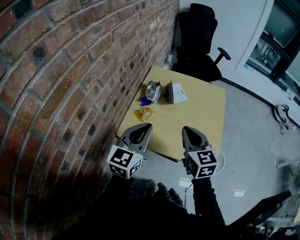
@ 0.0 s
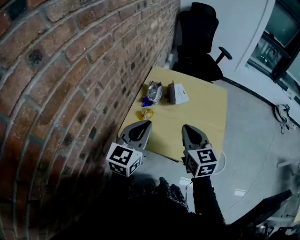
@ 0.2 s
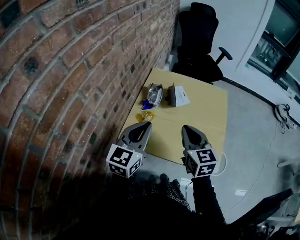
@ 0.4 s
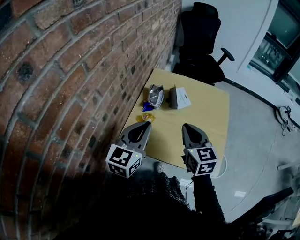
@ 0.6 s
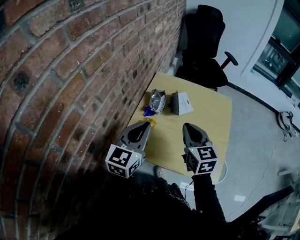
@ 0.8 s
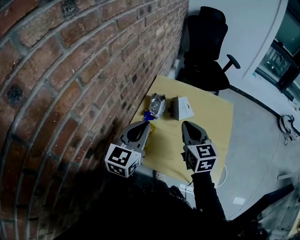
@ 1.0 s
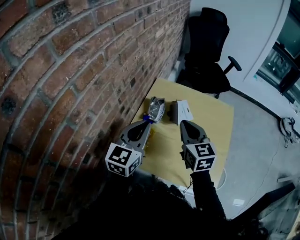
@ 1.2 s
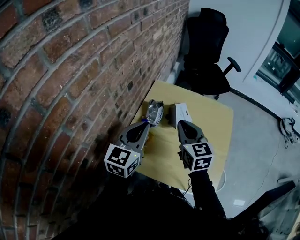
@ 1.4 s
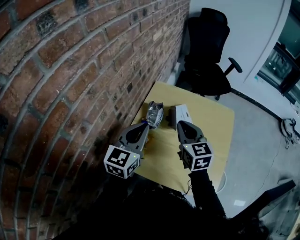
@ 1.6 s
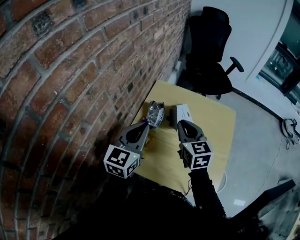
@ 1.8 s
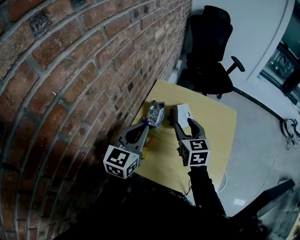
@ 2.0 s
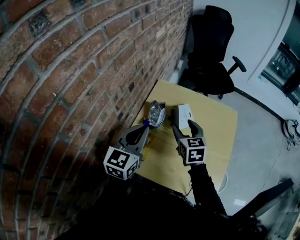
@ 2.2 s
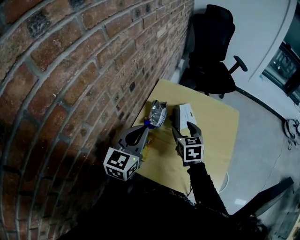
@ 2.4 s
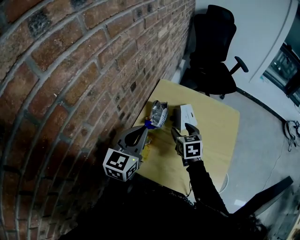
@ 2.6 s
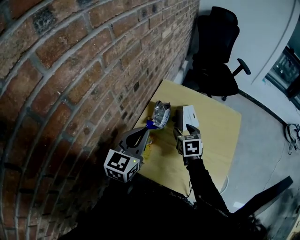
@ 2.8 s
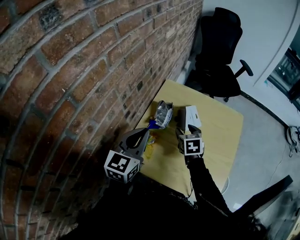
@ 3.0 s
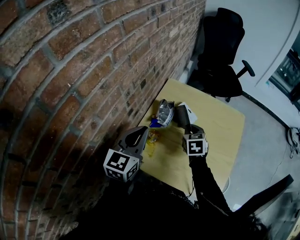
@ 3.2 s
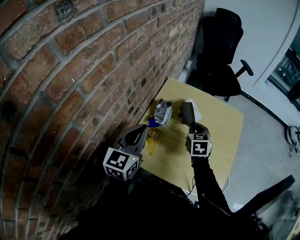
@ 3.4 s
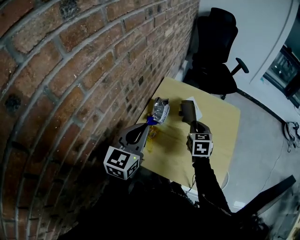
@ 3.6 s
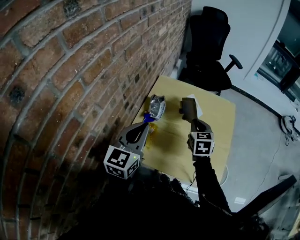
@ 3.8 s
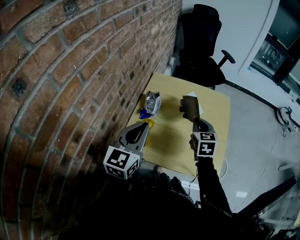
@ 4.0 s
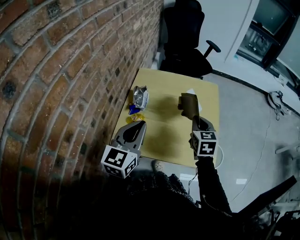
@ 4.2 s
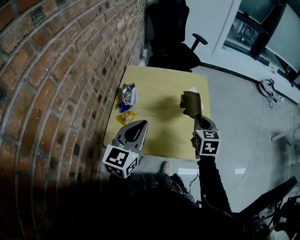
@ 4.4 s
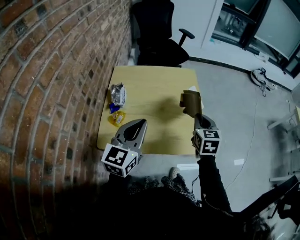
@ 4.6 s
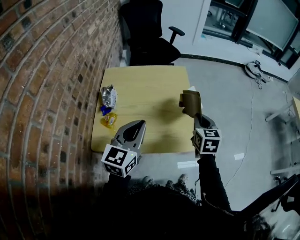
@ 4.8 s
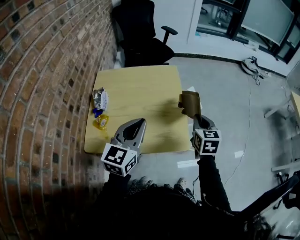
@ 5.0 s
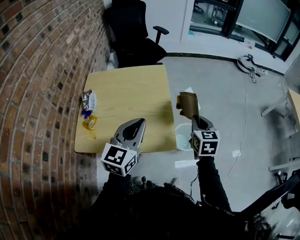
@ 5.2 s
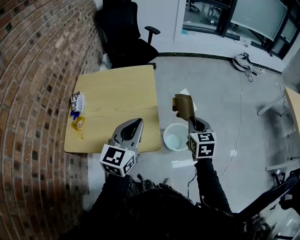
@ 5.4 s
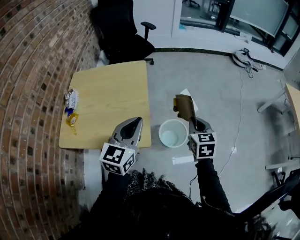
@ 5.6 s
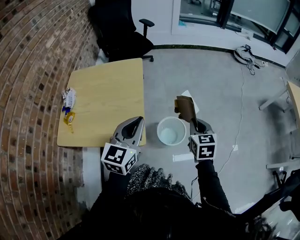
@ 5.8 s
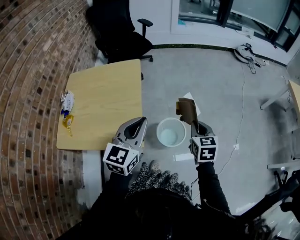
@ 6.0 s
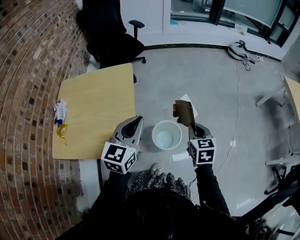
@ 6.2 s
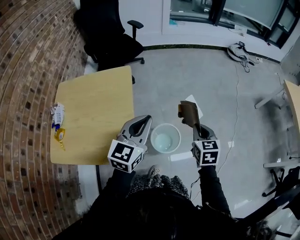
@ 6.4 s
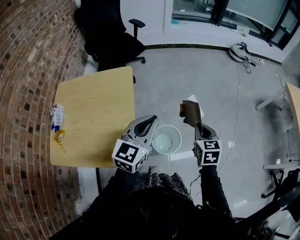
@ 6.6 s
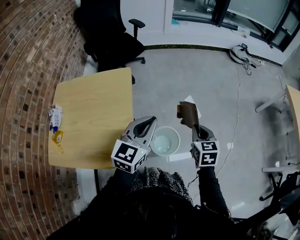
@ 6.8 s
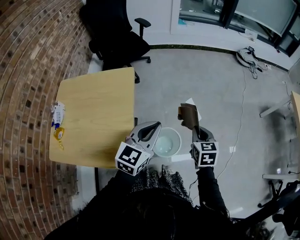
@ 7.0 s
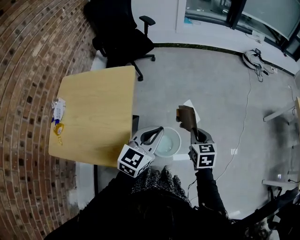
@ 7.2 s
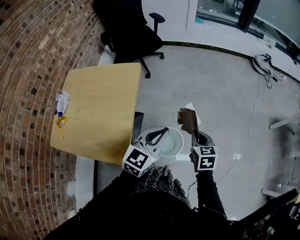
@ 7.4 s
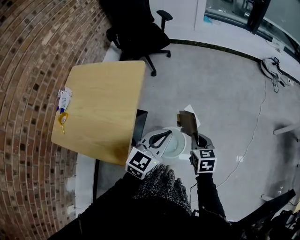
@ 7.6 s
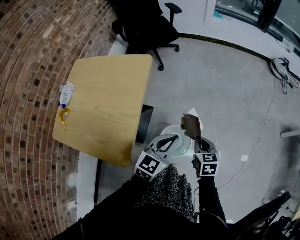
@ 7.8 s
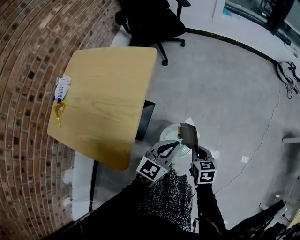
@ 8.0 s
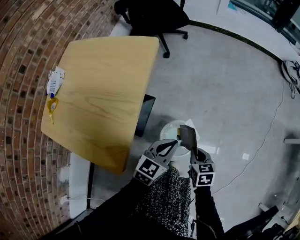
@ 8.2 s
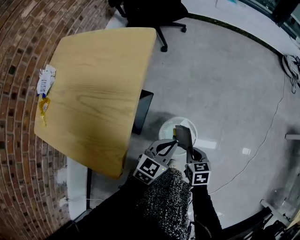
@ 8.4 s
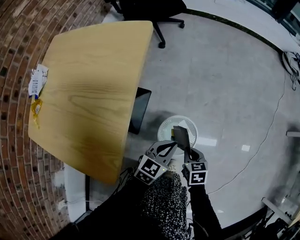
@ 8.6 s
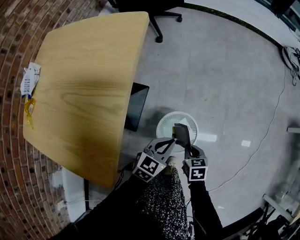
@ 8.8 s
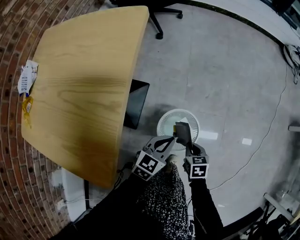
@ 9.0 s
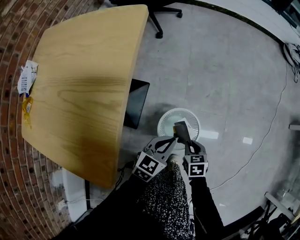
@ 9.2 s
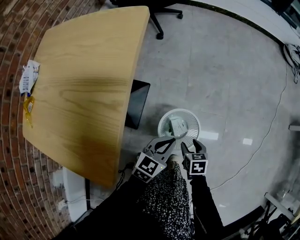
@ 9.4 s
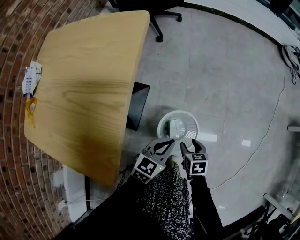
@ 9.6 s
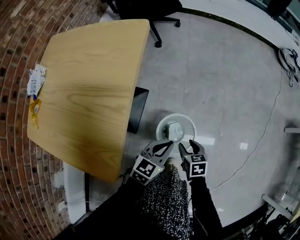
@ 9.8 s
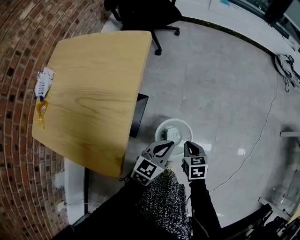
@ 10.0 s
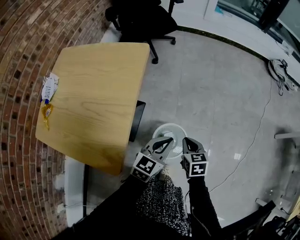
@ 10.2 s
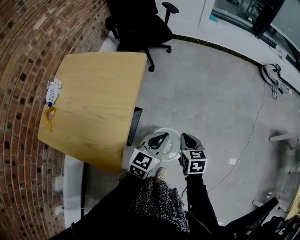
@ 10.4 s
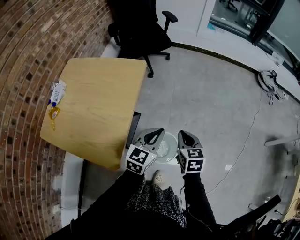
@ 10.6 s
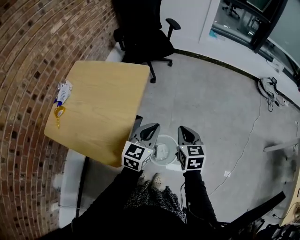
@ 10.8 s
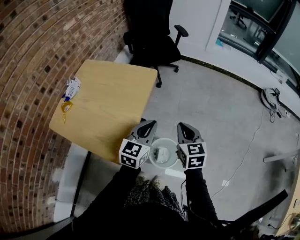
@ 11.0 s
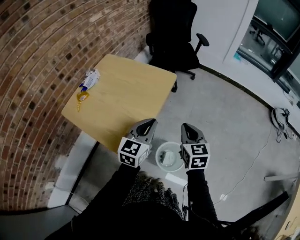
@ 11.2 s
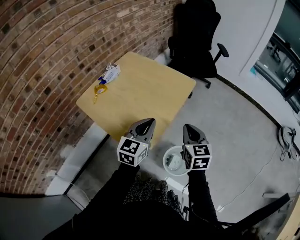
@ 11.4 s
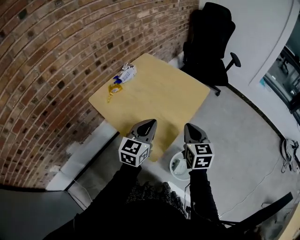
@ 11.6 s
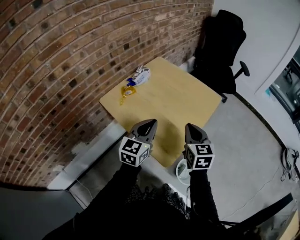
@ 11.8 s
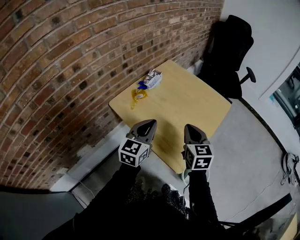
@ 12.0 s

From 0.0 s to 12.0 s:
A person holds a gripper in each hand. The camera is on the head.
From 0.0 s to 1.6 s: Both grippers move forward, approximately 15 cm.
From 1.6 s to 3.0 s: The right gripper is displaced downward by some 15 cm, swivels some 30 degrees, and opens up.
From 3.0 s to 4.4 s: The left gripper moves to the right and backward, roughly 15 cm; the right gripper is displaced to the right, backward and upward by roughly 25 cm, rotates about 30 degrees, and closes its fingers.
From 4.4 s to 6.0 s: Both grippers are carried to the right, approximately 40 cm.
From 6.0 s to 7.6 s: The left gripper moves forward, to the right and downward, roughly 20 cm, while the right gripper moves forward and downward, some 15 cm.
From 7.6 s to 9.0 s: Both grippers travel together downward, about 35 cm. The right gripper changes its angle by approximately 20 degrees.
From 9.0 s to 10.4 s: The two grippers go about 25 cm upward. The right gripper opens, then closes again.
From 10.4 s to 12.0 s: The left gripper changes place by roughly 50 cm, and turns by roughly 40 degrees. Meanwhile the right gripper ends up approximately 40 cm from where it was, and rotates approximately 40 degrees.

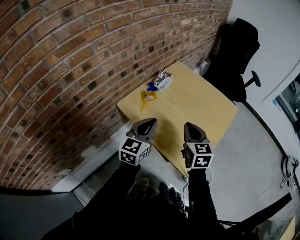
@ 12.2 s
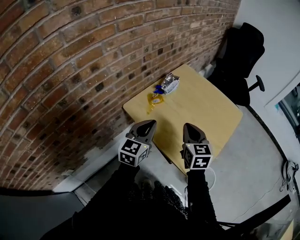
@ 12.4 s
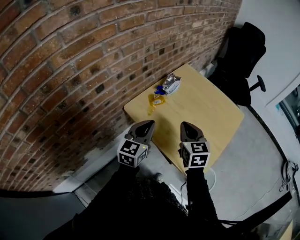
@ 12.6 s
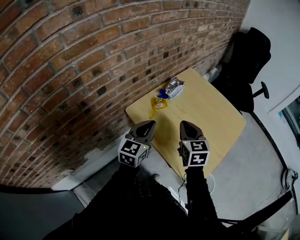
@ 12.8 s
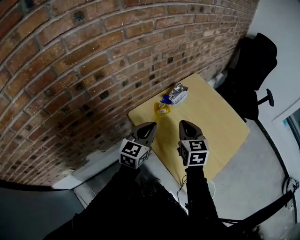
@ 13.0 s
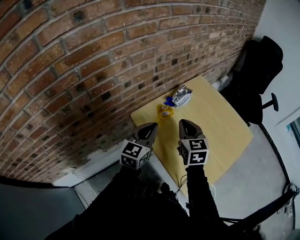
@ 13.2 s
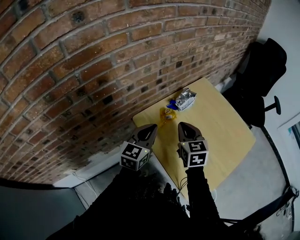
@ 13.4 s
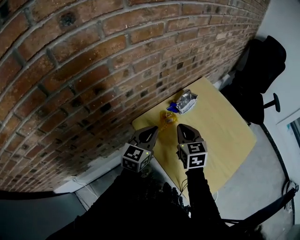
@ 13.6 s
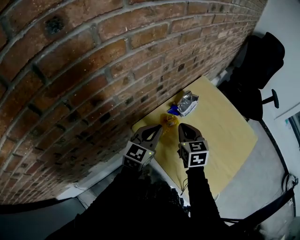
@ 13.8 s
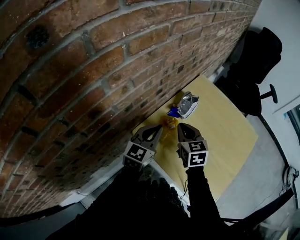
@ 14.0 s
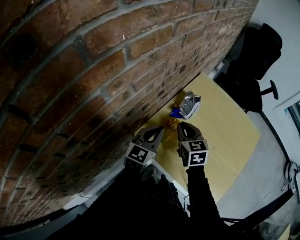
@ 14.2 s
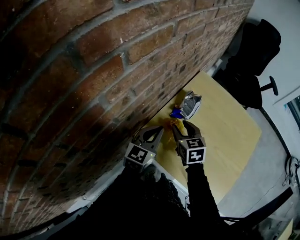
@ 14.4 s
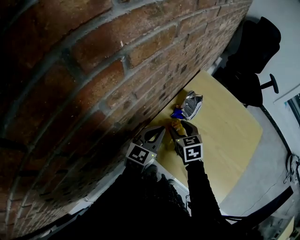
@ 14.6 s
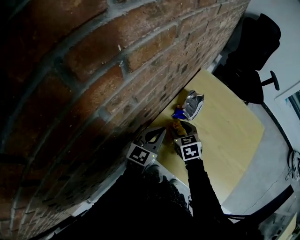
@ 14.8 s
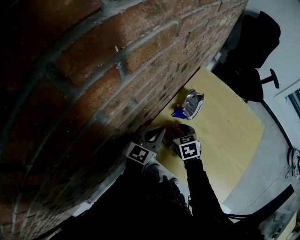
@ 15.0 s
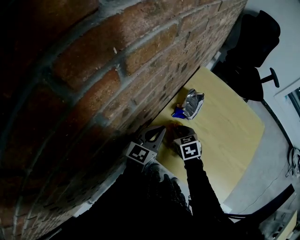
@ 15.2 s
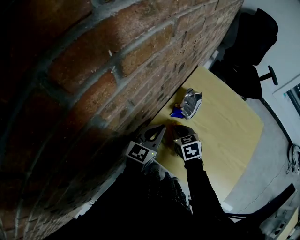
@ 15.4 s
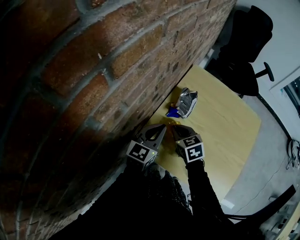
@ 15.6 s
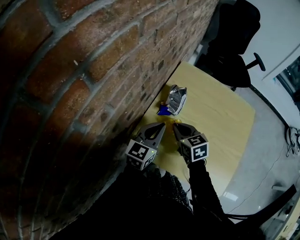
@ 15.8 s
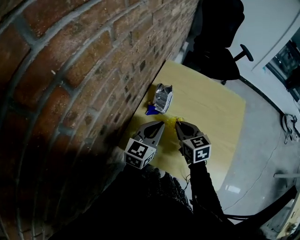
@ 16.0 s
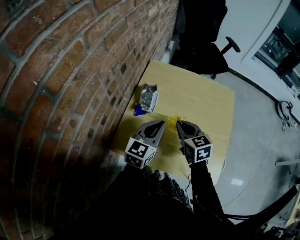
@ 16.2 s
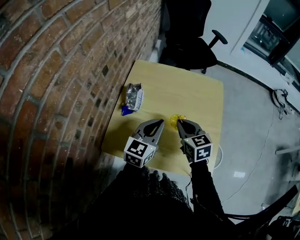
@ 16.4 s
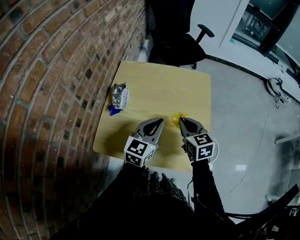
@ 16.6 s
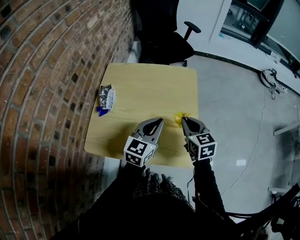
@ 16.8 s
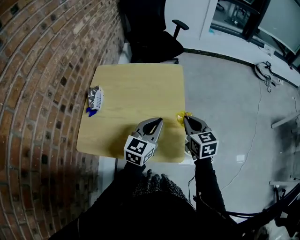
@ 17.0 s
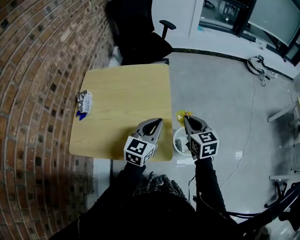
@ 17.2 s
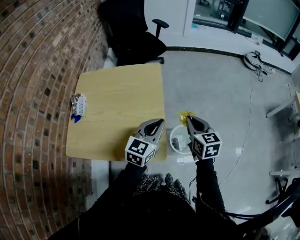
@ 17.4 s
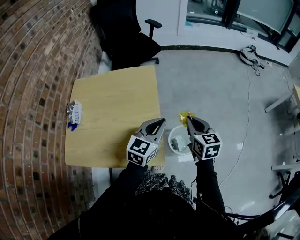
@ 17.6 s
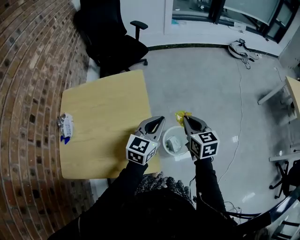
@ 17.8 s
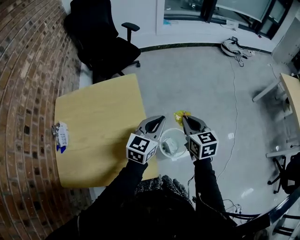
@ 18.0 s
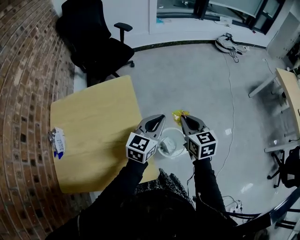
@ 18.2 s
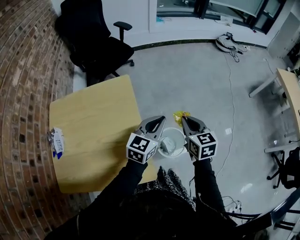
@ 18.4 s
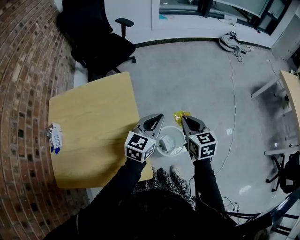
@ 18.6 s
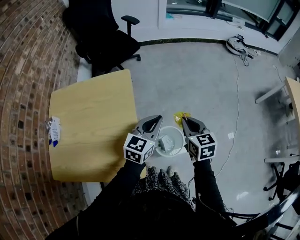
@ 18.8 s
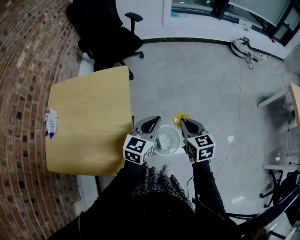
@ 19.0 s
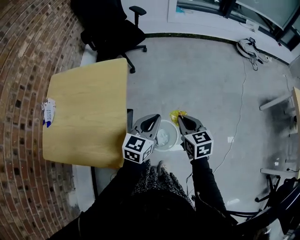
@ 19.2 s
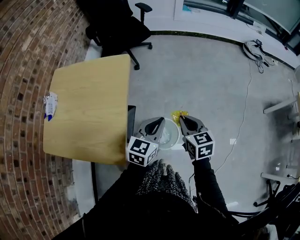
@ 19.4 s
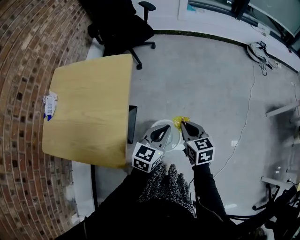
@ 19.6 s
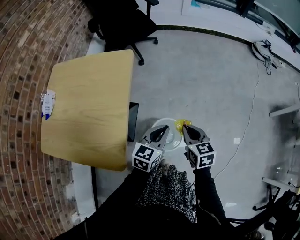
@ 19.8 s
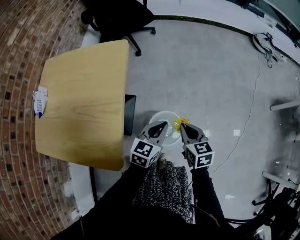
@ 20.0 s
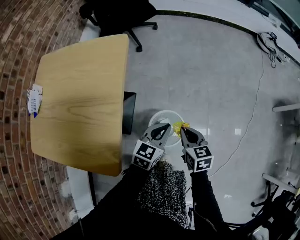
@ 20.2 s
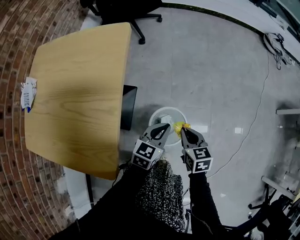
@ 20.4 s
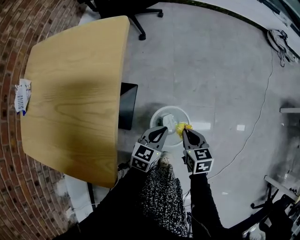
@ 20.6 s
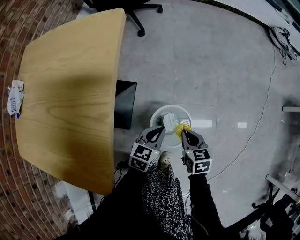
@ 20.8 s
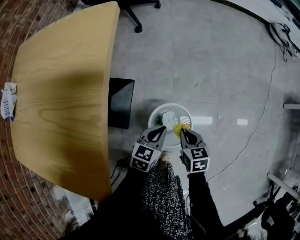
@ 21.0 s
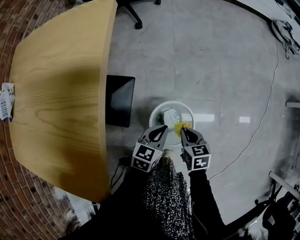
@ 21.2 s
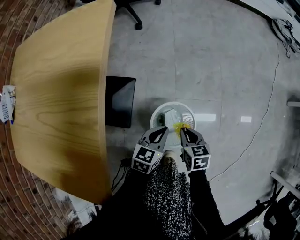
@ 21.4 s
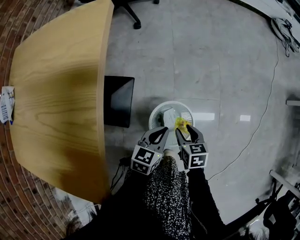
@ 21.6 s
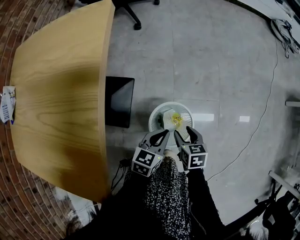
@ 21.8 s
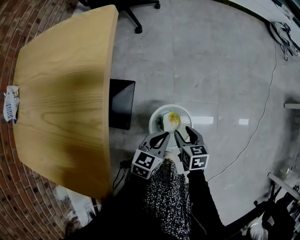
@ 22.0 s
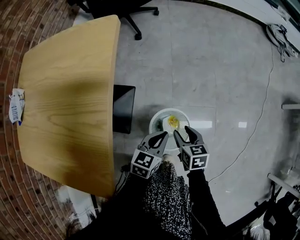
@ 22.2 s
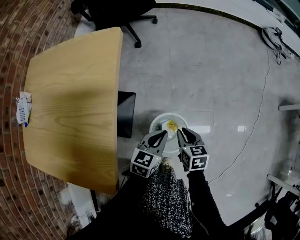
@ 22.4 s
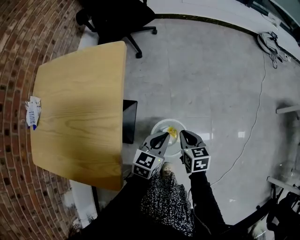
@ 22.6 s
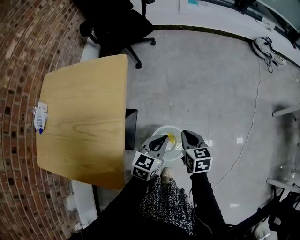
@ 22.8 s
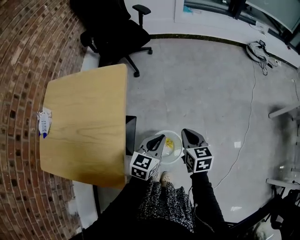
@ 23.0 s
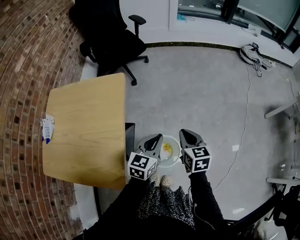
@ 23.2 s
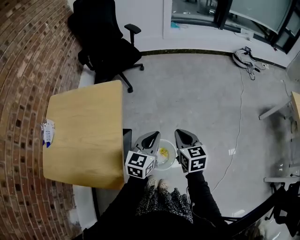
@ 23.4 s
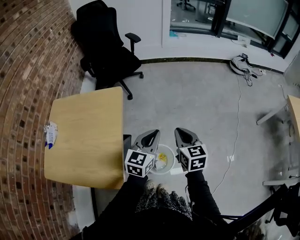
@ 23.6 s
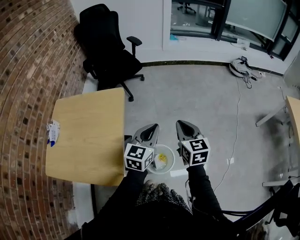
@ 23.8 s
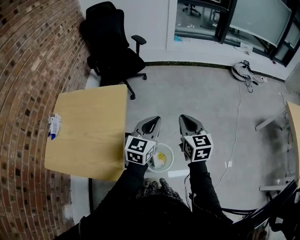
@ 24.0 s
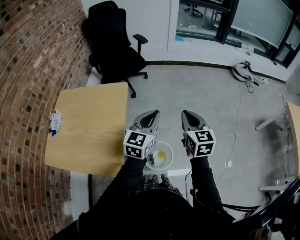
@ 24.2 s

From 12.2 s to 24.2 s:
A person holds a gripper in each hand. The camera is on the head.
From 12.2 s to 13.8 s: The two grippers go roughly 20 cm forward and to the left.
From 13.8 s to 15.2 s: The left gripper heads forward, covering approximately 5 cm, while the right gripper is displaced downward and to the left by about 15 cm, and opens, then closes again.
From 15.2 s to 16.6 s: The left gripper changes place by roughly 30 cm, and swivels about 30 degrees; the right gripper shifts by roughly 35 cm, and turns by roughly 40 degrees.
From 16.6 s to 18.2 s: The right gripper shifts by approximately 35 cm, and changes its angle by roughly 30 degrees, while the left gripper changes place by approximately 35 cm, and rotates roughly 30 degrees.
From 18.2 s to 19.8 s: Both grippers move downward and to the right, roughly 15 cm. The right gripper changes its angle by approximately 20 degrees. The left gripper swivels approximately 20 degrees.
From 19.8 s to 21.2 s: Both grippers travel together downward, approximately 30 cm.
From 21.2 s to 22.6 s: Both grippers travel together upward, approximately 15 cm. The right gripper opens, then closes again.
From 22.6 s to 24.2 s: The grippers both shift upward by some 35 cm. The right gripper turns by some 30 degrees. The left gripper swivels approximately 30 degrees.
